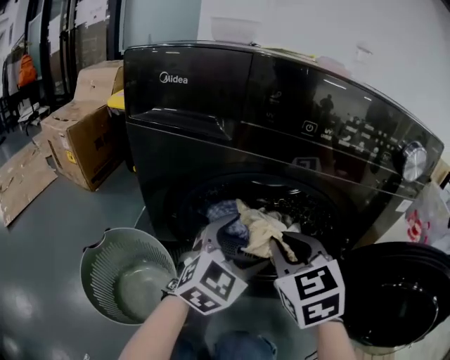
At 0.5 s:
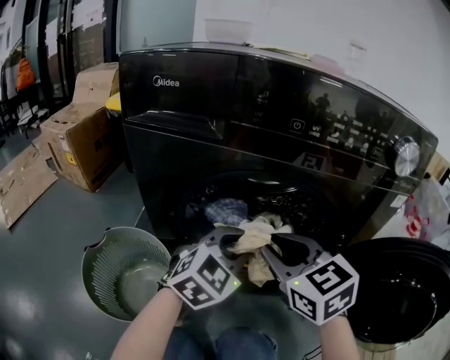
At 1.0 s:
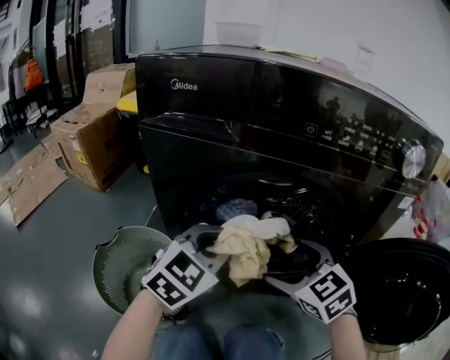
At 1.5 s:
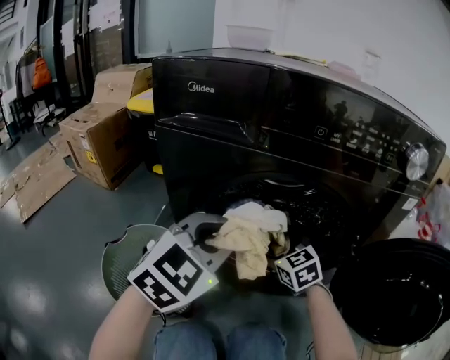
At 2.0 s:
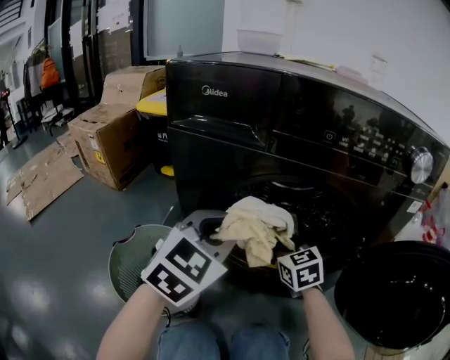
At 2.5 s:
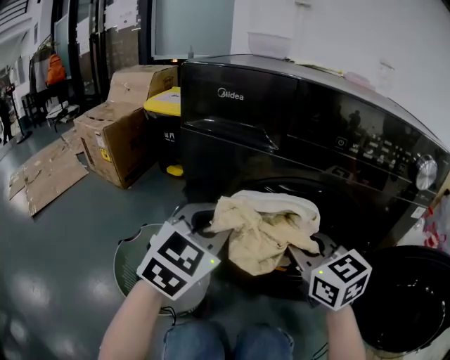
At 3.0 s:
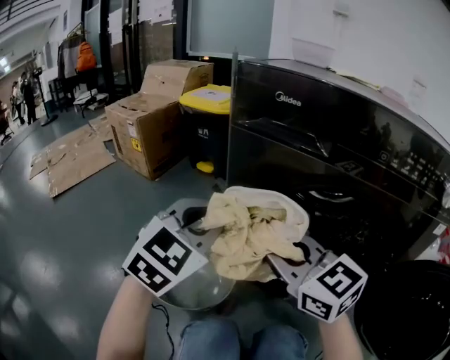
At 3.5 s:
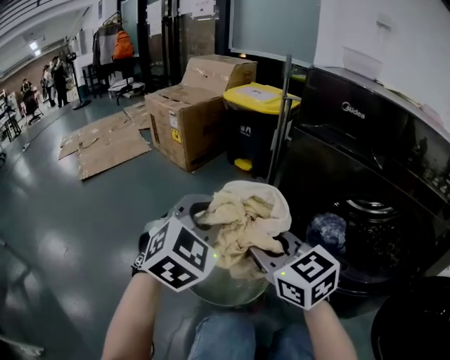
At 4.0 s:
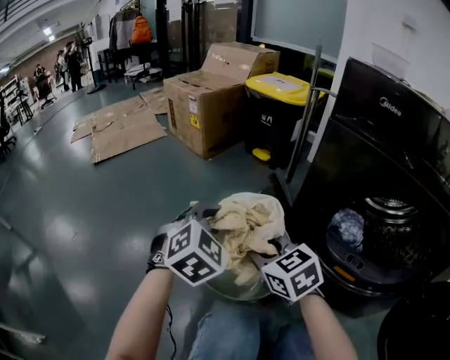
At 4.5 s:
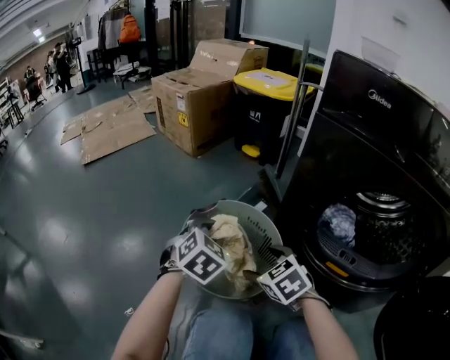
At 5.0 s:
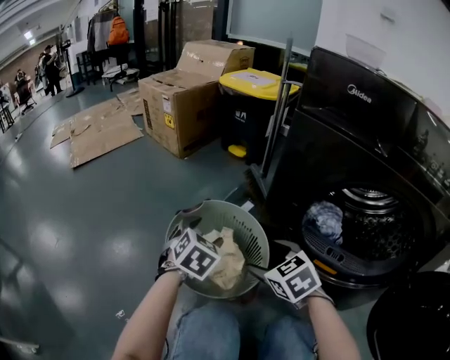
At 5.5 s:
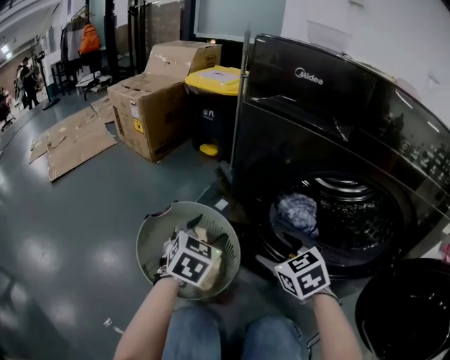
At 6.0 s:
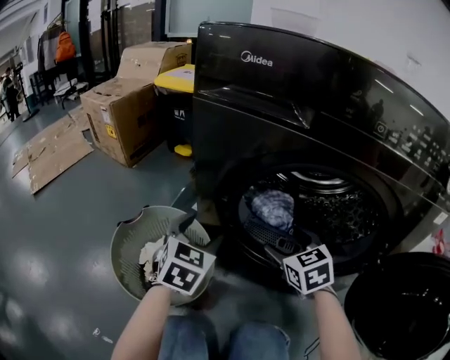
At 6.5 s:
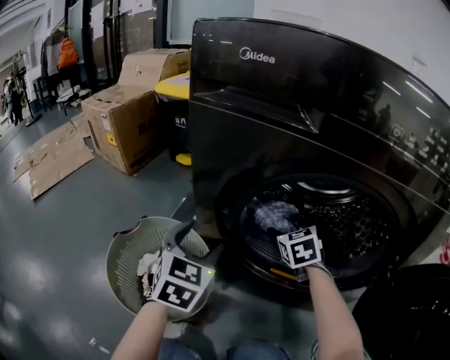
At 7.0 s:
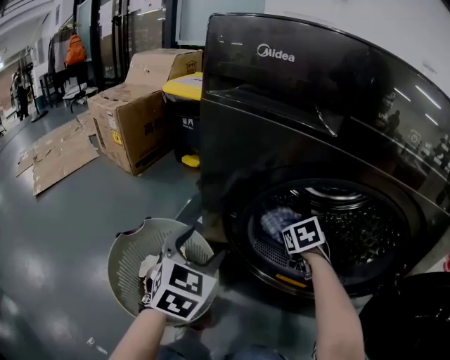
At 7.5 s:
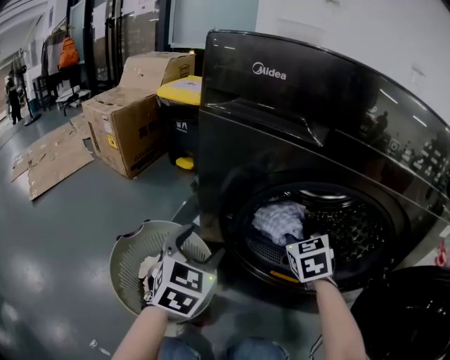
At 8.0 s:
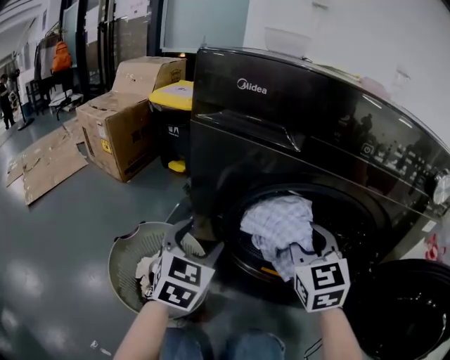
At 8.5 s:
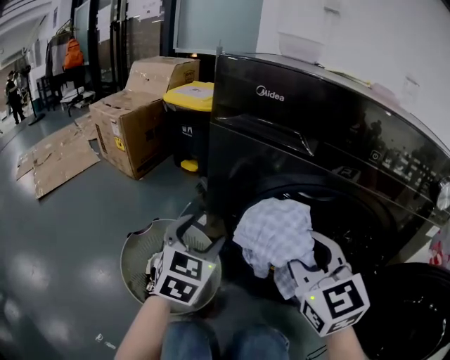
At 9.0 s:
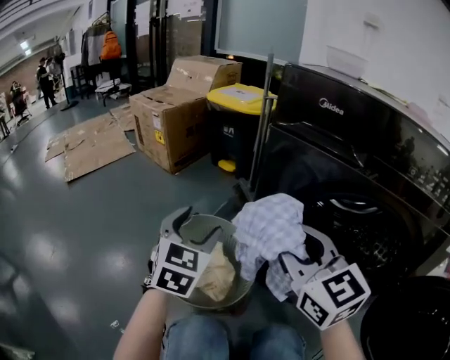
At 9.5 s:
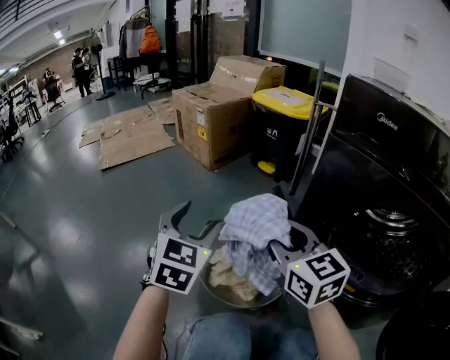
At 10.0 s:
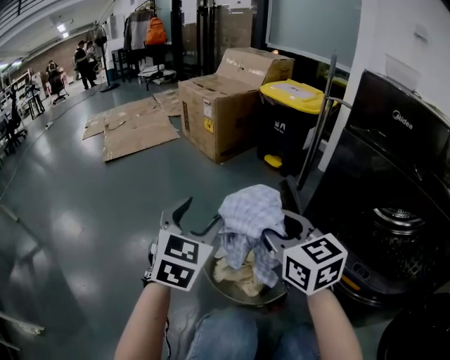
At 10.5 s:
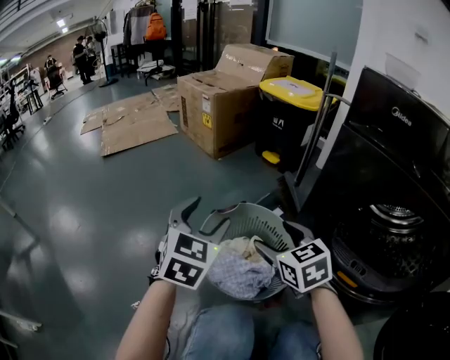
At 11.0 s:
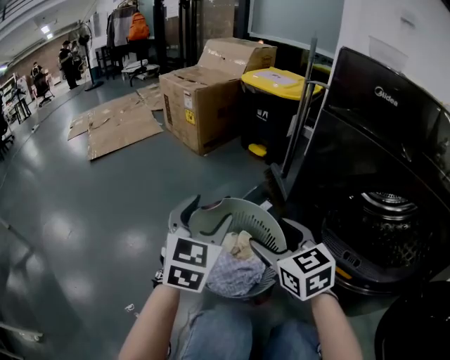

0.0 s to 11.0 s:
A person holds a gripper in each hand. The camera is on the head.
0.0 to 2.0 s: The right gripper is displaced downward and forward by approximately 10 cm, and opens, then closes again. Meanwhile the left gripper moves to the left and upward, roughly 10 cm, and closes.
2.0 to 3.5 s: The right gripper moves approximately 35 cm, and rotates some 40 degrees. Meanwhile the left gripper ends up some 25 cm from where it was, and rotates approximately 30 degrees.
3.5 to 5.5 s: The right gripper shifts some 20 cm to the right and downward, turns by about 30 degrees, and opens up, while the left gripper heads downward and to the right, covering some 20 cm, turns by some 20 degrees, and opens.
5.5 to 7.5 s: The right gripper shifts some 15 cm to the right and forward, turns by roughly 20 degrees, and closes. The left gripper goes approximately 5 cm to the right.
7.5 to 9.0 s: The right gripper is displaced to the left, upward and backward by about 30 cm, and changes its angle by approximately 40 degrees, while the left gripper shifts some 15 cm to the left and upward.
9.0 to 11.0 s: The left gripper travels to the left by about 5 cm; the right gripper moves downward, to the left and forward, approximately 20 cm, and opens up.

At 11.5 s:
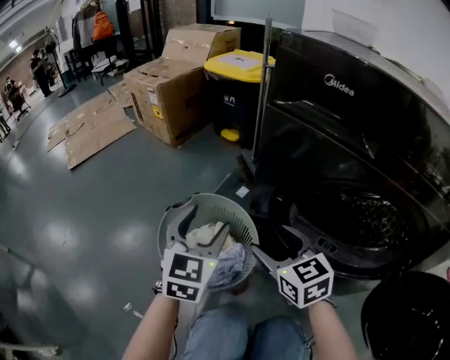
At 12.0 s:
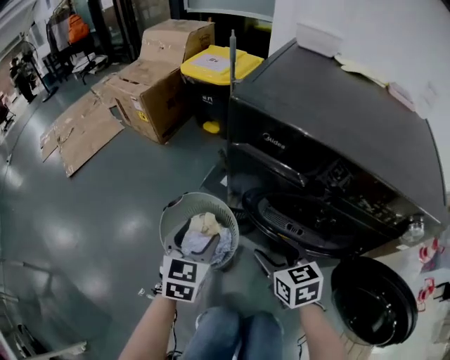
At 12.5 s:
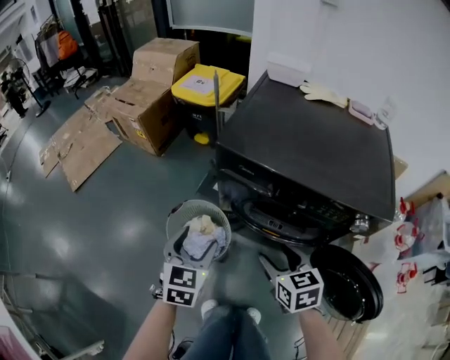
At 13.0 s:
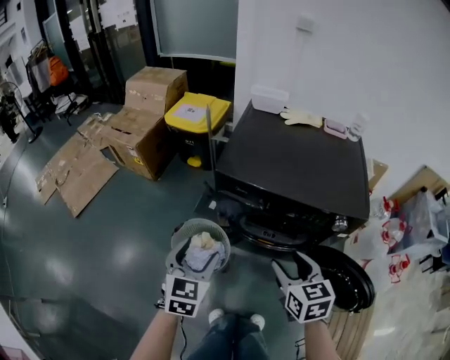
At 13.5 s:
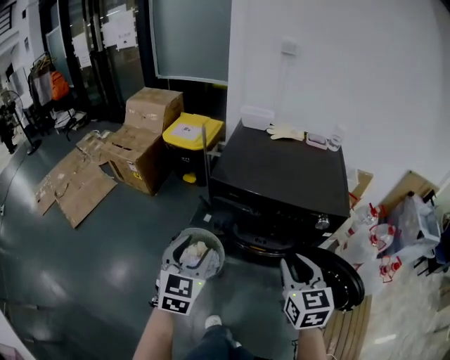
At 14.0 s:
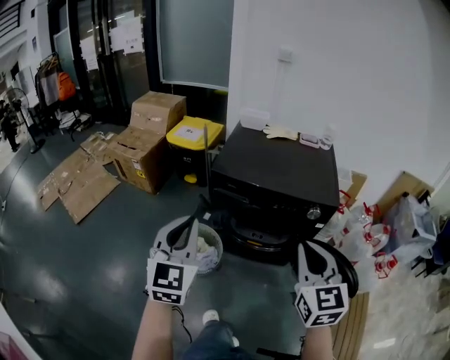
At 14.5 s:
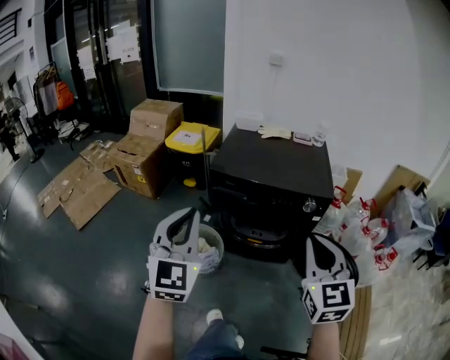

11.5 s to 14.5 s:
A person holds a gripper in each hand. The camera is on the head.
11.5 to 13.0 s: The left gripper heads upward, covering roughly 35 cm, while the right gripper is displaced upward and backward by approximately 40 cm, and turns by about 30 degrees.
13.0 to 14.5 s: Both grippers move upward and backward, about 30 cm. The left gripper rotates about 30 degrees, and closes its fingers, while the right gripper changes its angle by some 30 degrees, and closes.

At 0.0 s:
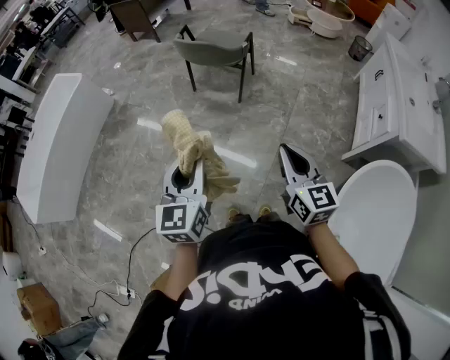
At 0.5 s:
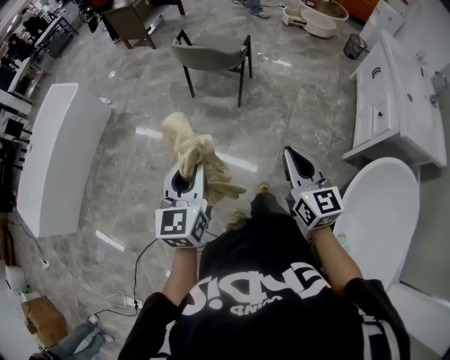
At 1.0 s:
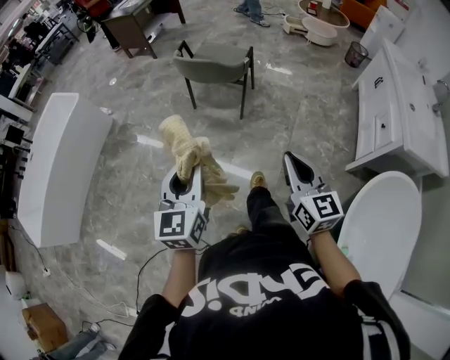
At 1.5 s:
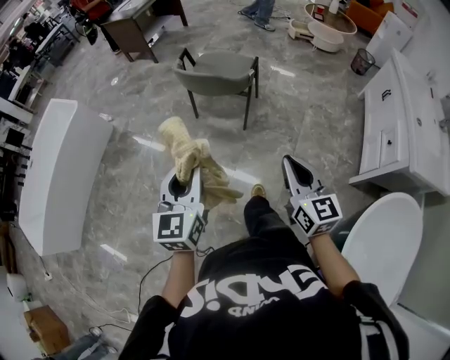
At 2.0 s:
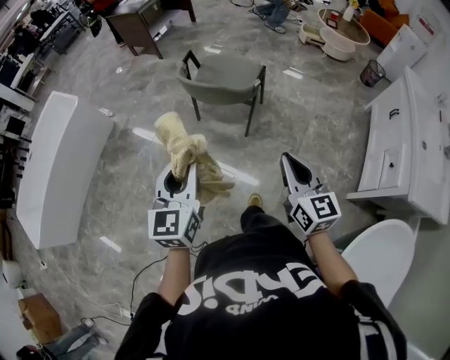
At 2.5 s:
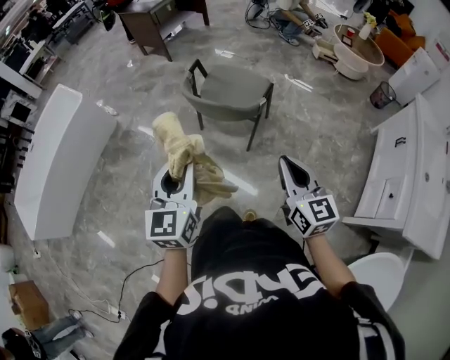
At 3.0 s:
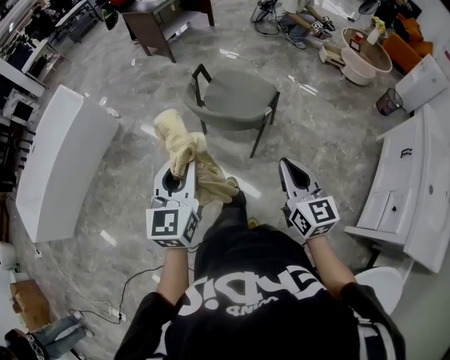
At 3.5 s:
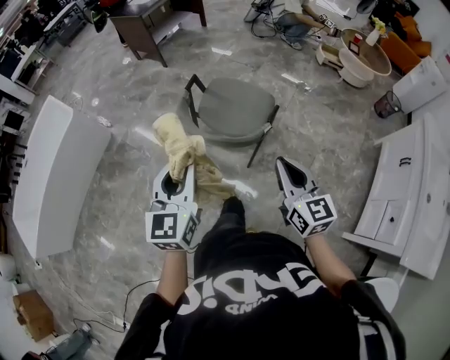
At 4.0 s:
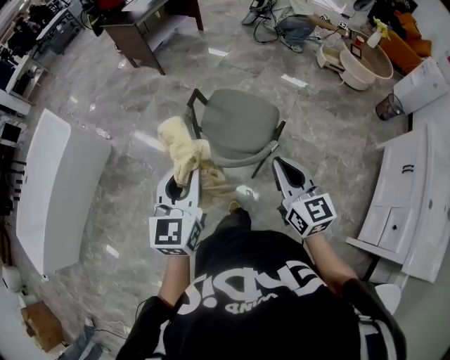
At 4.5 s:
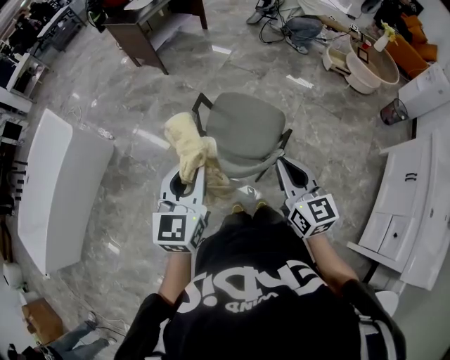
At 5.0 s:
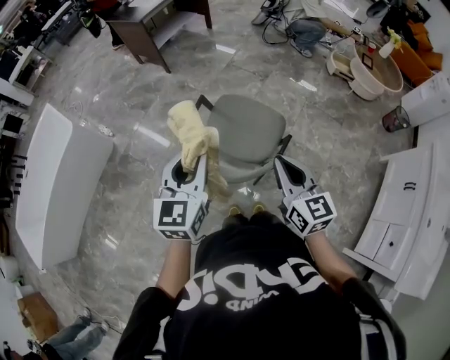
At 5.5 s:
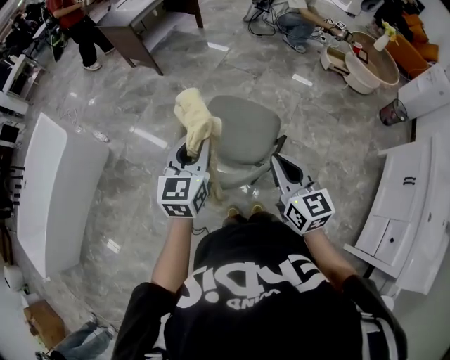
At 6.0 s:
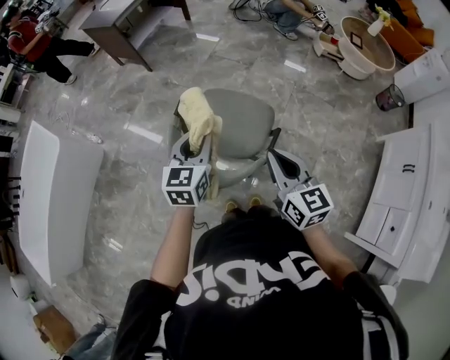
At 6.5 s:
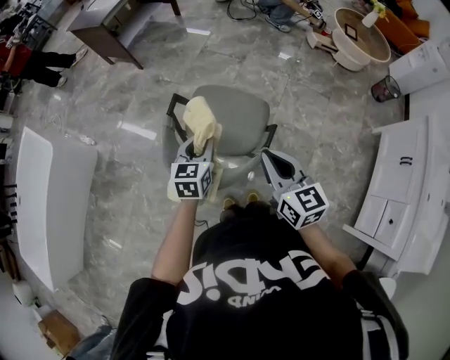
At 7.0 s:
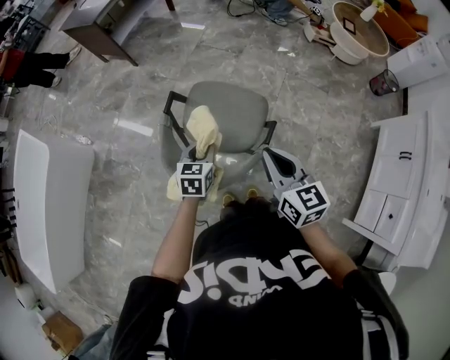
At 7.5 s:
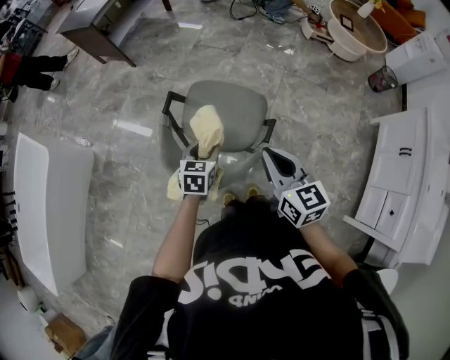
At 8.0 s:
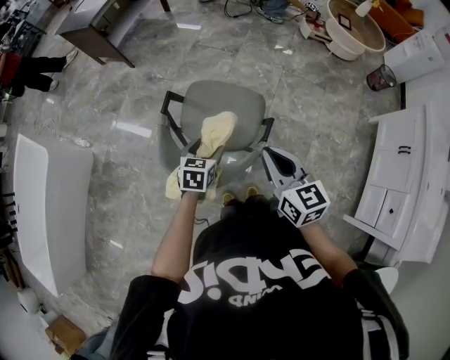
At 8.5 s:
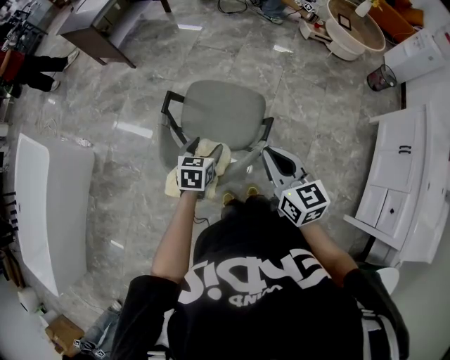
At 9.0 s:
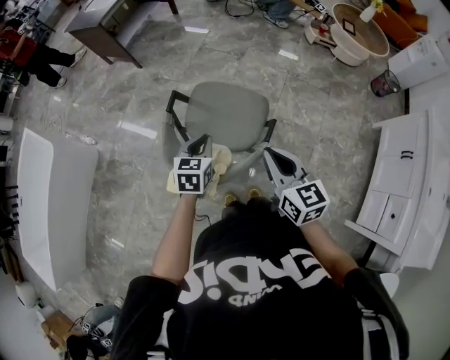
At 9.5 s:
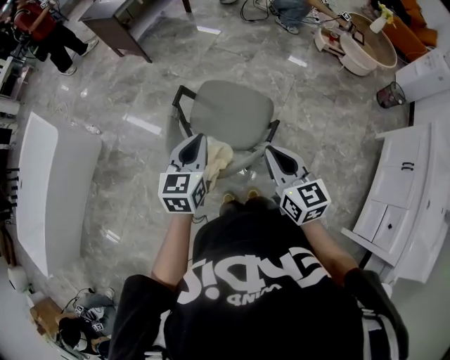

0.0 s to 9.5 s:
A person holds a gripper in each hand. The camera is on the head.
0.0 to 2.0 s: Both grippers travel together forward, about 30 cm.
2.0 to 4.0 s: The two grippers go some 35 cm forward.
4.0 to 5.5 s: The right gripper travels forward by approximately 10 cm. The left gripper is displaced forward by some 15 cm.
5.5 to 7.5 s: The right gripper shifts by some 5 cm. The left gripper heads downward, covering roughly 20 cm, and turns by roughly 30 degrees.
7.5 to 9.5 s: The left gripper is displaced upward by roughly 15 cm, rotates roughly 20 degrees, and closes its fingers.

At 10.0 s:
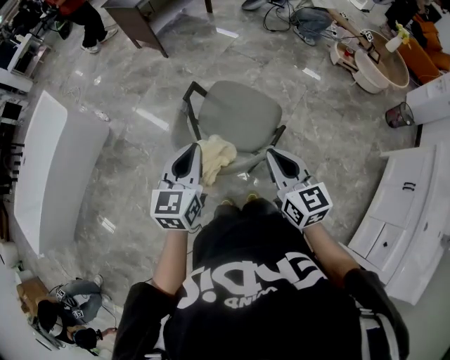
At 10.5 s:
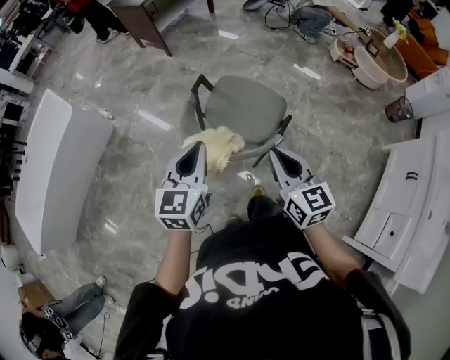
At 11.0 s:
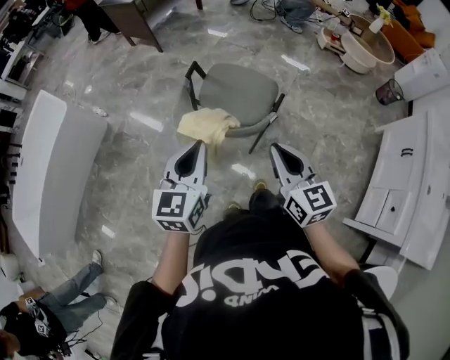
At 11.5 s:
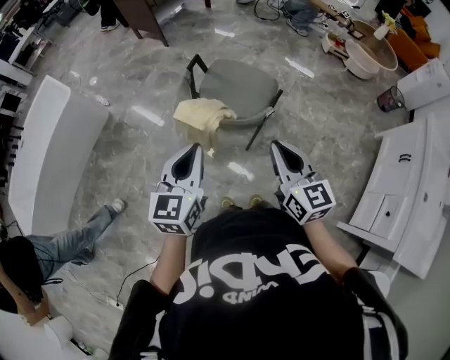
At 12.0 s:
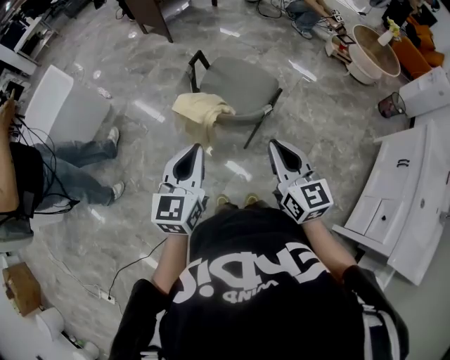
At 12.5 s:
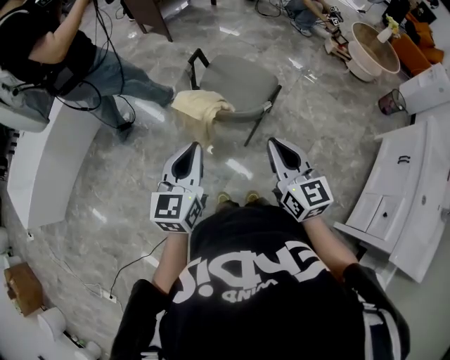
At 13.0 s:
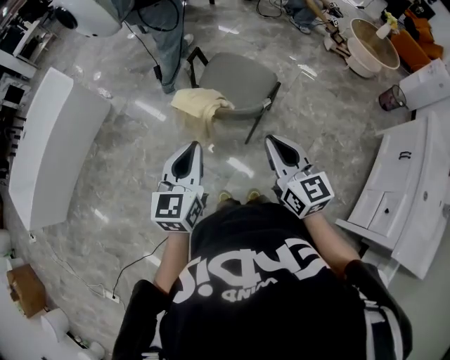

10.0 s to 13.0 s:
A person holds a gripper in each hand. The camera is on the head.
10.0 to 11.5 s: Both grippers move backward, approximately 20 cm.
11.5 to 13.0 s: There are only small adjustments of the grippers.
